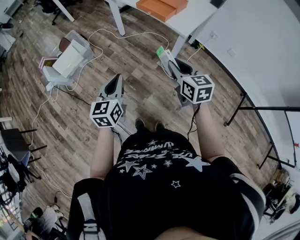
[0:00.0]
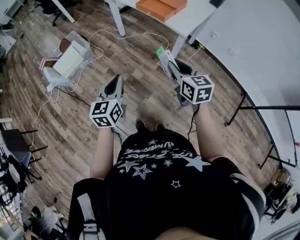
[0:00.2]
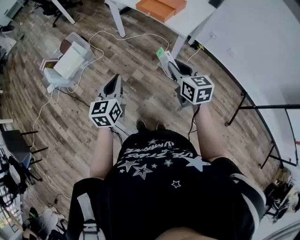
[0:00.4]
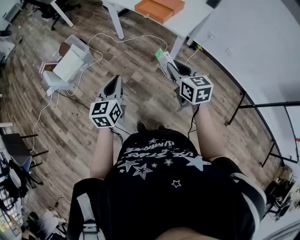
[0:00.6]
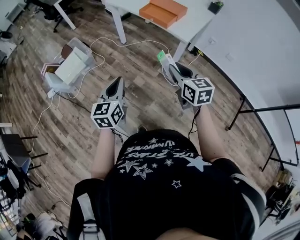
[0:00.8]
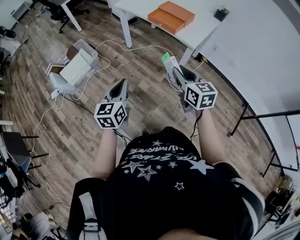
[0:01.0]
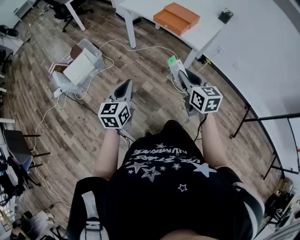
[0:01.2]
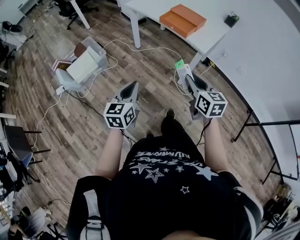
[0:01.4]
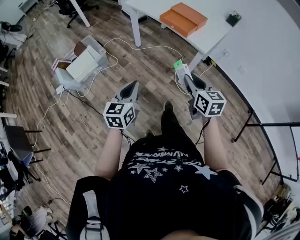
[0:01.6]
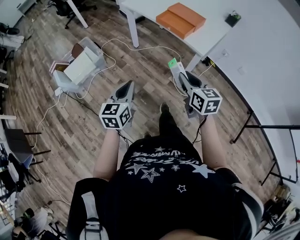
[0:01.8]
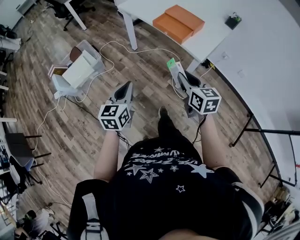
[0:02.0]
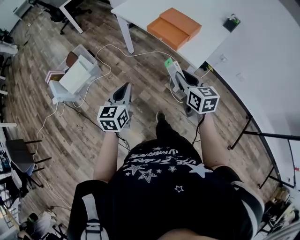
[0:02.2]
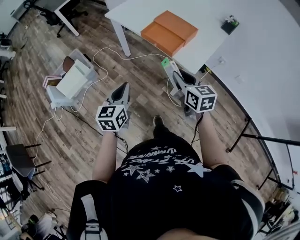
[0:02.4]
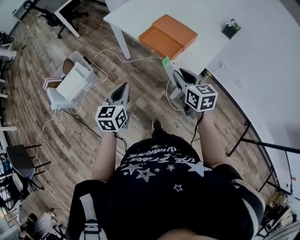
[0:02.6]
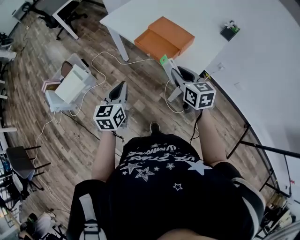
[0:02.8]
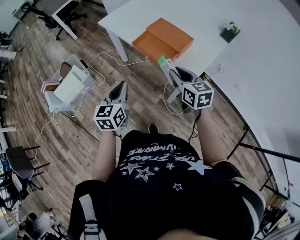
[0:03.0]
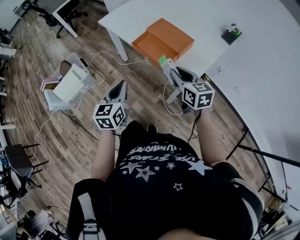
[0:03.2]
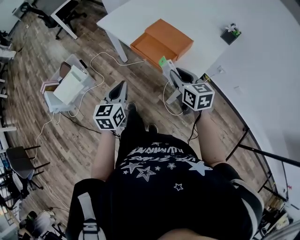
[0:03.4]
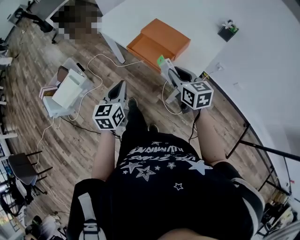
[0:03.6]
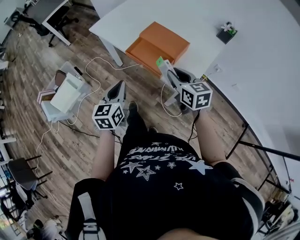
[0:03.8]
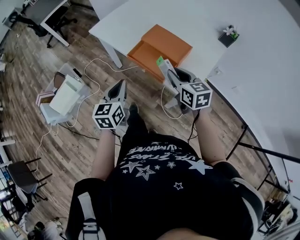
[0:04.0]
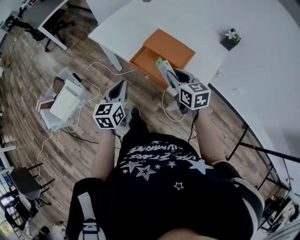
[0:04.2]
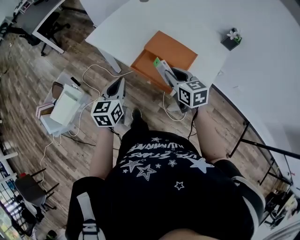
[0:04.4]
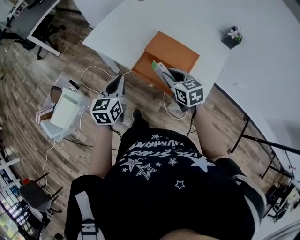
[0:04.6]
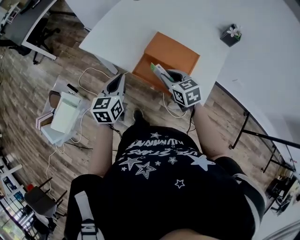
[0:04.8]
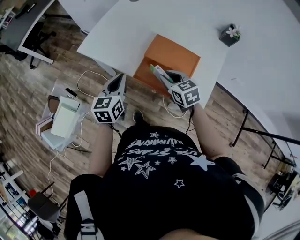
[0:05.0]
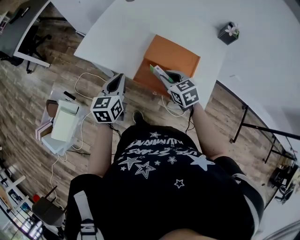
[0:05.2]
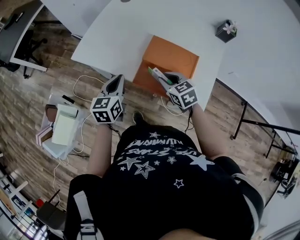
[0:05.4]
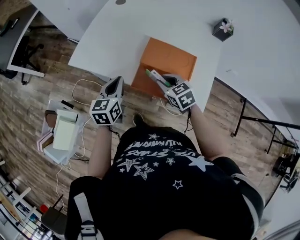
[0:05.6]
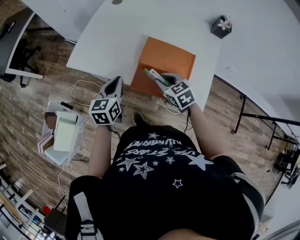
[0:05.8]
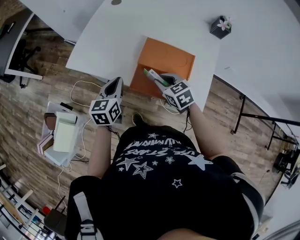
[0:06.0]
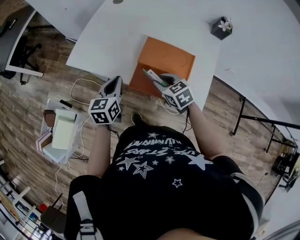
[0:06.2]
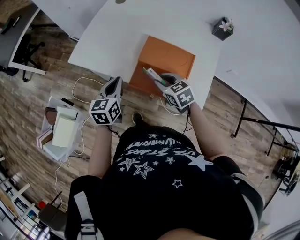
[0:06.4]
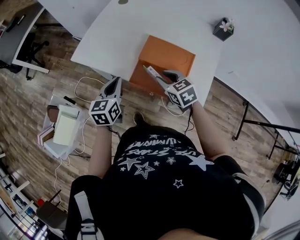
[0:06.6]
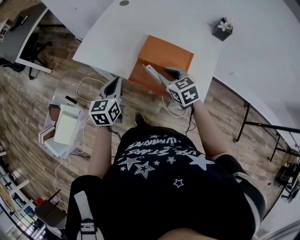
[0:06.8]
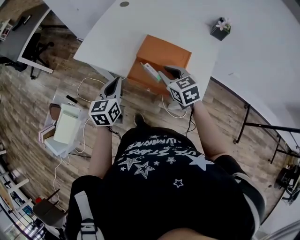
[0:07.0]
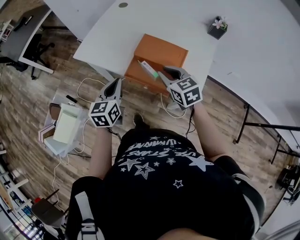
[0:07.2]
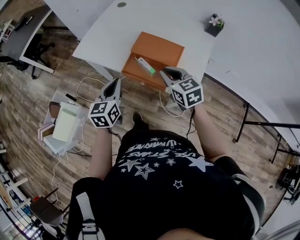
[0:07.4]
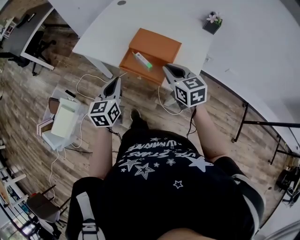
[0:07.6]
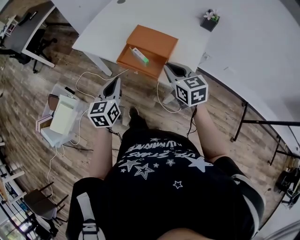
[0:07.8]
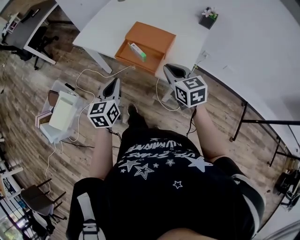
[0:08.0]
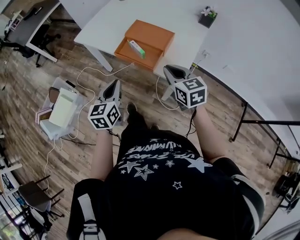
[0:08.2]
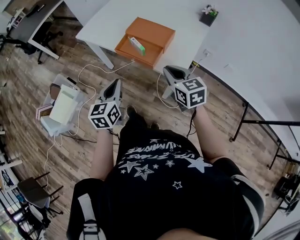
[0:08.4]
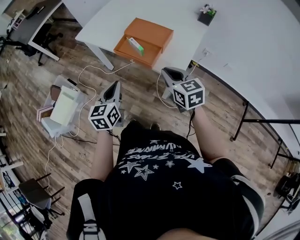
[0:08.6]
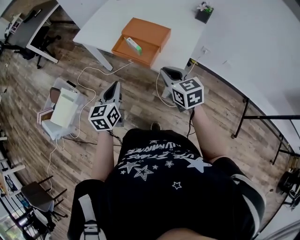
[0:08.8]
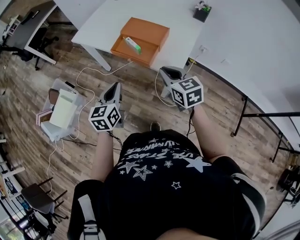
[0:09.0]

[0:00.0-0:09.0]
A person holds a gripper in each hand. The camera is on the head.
0.0 to 1.6 s: The grippers make only small movements.
1.6 to 3.0 s: The grippers both shift forward and to the right by about 15 cm.
3.0 to 4.4 s: The grippers both shift forward by some 10 cm.
4.4 to 6.0 s: The left gripper travels forward by about 10 cm; the right gripper heads downward, covering roughly 5 cm.
6.0 to 7.6 s: The right gripper moves upward and to the right, about 10 cm, while the left gripper goes about 10 cm backward.
7.6 to 9.0 s: The grippers both shift backward by approximately 10 cm.

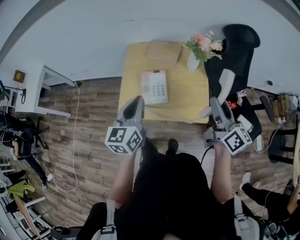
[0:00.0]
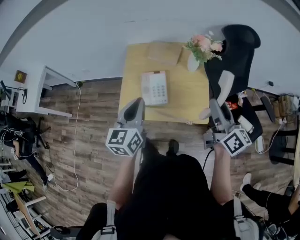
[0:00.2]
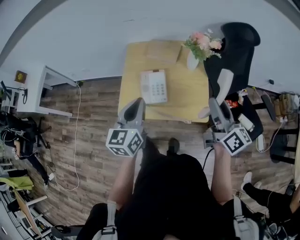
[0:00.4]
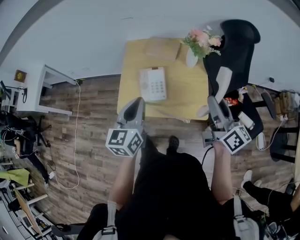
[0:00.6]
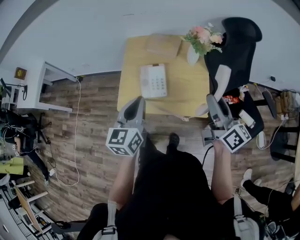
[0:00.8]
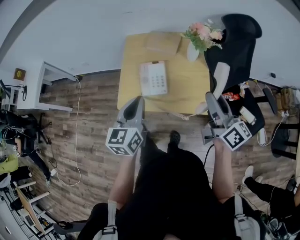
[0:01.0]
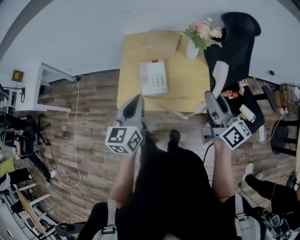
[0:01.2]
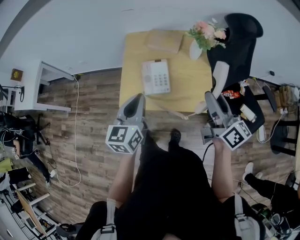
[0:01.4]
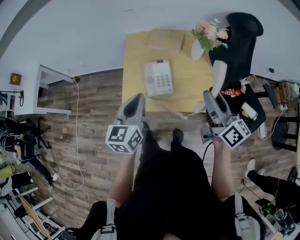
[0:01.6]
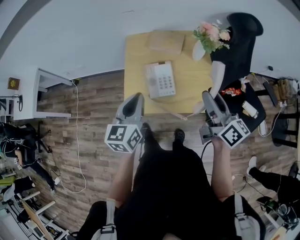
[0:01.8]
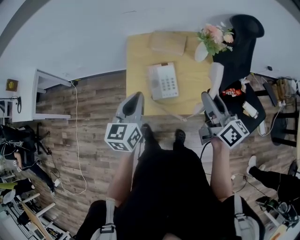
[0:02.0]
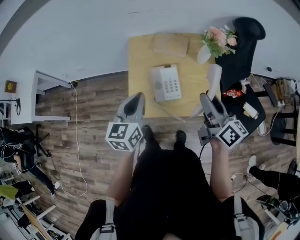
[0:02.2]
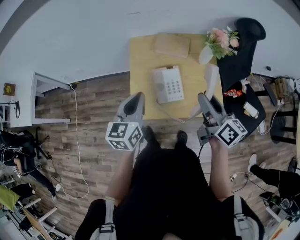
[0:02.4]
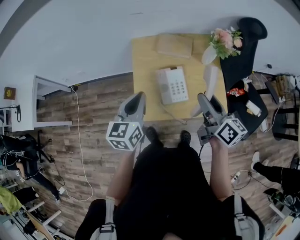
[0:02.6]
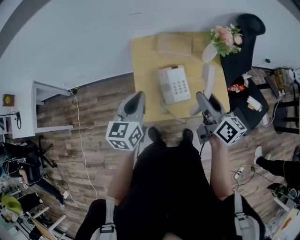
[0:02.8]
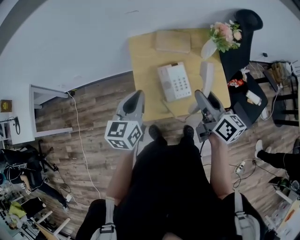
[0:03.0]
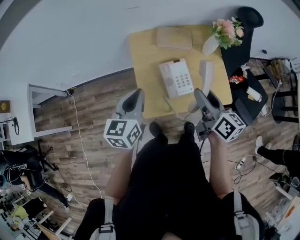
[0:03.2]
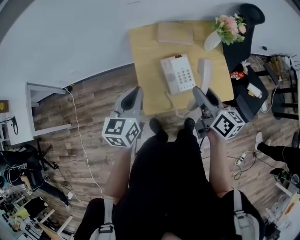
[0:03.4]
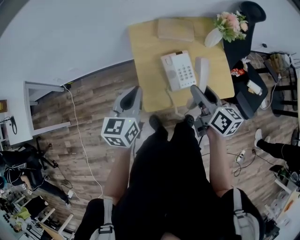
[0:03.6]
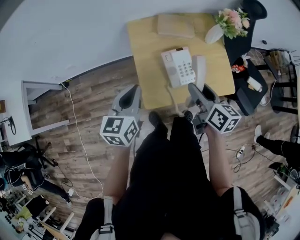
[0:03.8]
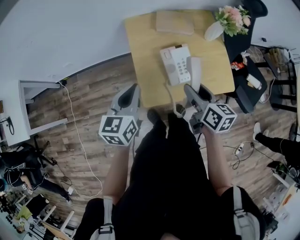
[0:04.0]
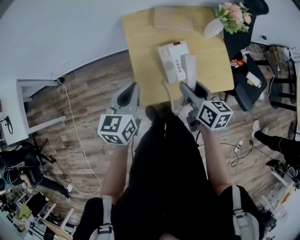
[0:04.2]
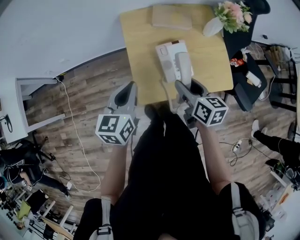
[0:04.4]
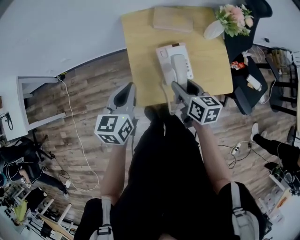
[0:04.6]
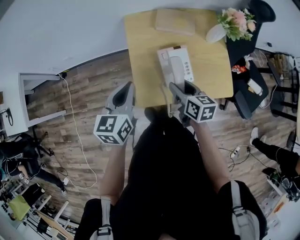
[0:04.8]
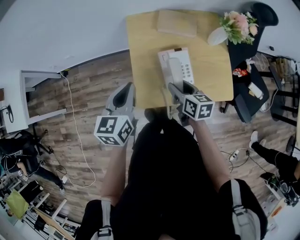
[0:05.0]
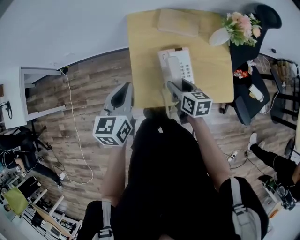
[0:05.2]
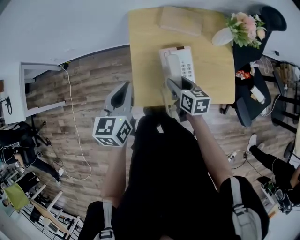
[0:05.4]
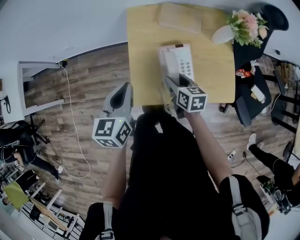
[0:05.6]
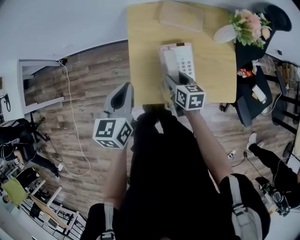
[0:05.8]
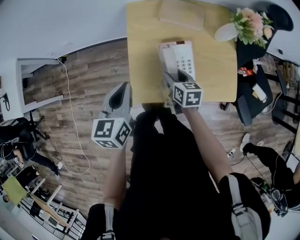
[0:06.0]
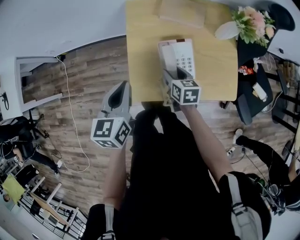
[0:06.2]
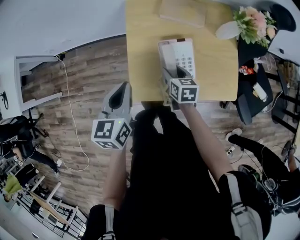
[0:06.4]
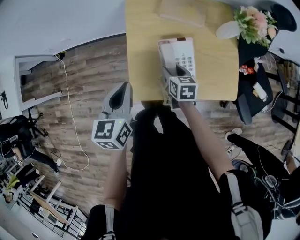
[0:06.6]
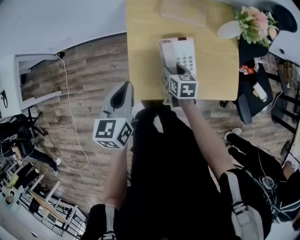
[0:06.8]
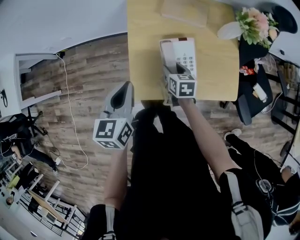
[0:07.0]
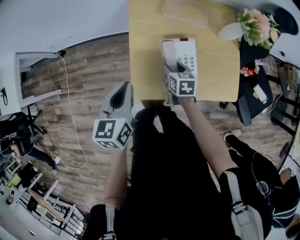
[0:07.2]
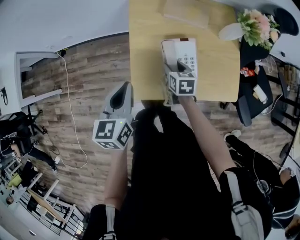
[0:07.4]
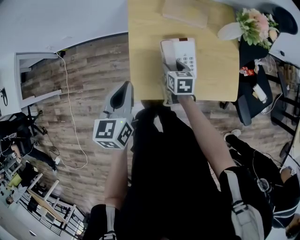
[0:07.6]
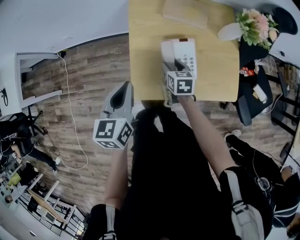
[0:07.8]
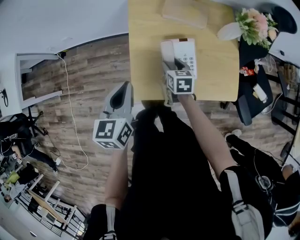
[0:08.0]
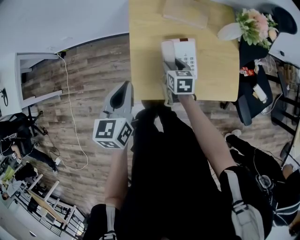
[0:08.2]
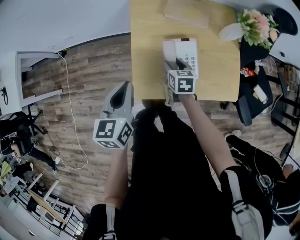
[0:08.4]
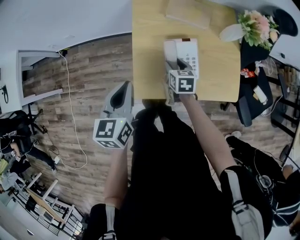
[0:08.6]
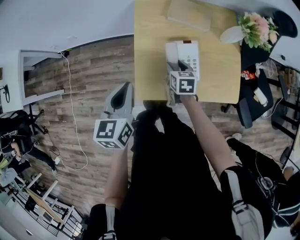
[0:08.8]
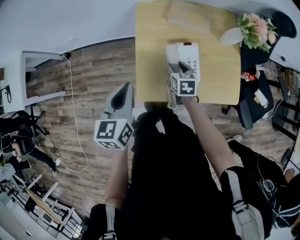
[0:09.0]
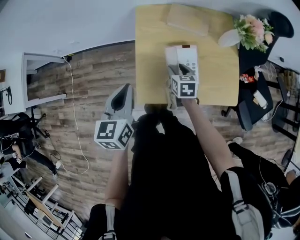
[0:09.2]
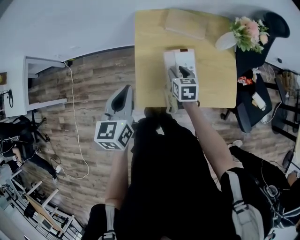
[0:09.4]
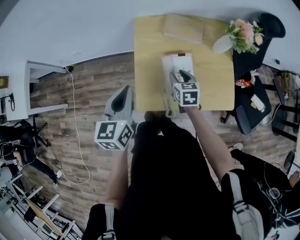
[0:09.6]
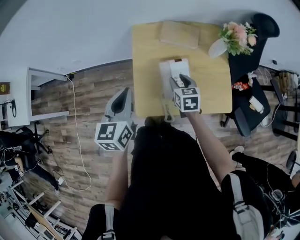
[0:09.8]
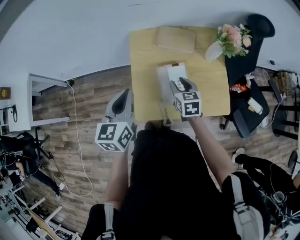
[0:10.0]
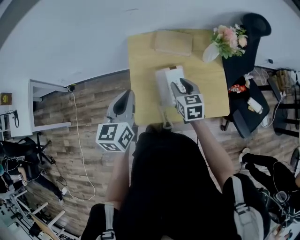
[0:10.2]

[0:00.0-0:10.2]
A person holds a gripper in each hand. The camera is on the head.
0.0 to 1.4 s: The grippers move only a little.
1.4 to 3.0 s: The right gripper travels to the left by approximately 20 cm. The left gripper heads to the left and forward, covering roughly 20 cm.
3.0 to 4.4 s: The right gripper is displaced downward and to the left by about 15 cm, and turns by about 20 degrees; the left gripper moves downward, approximately 5 cm.
4.4 to 5.8 s: The right gripper goes about 15 cm downward and forward.
5.8 to 7.2 s: The right gripper travels downward by about 5 cm.
7.2 to 8.8 s: The grippers make only small movements.
8.8 to 10.2 s: The right gripper goes roughly 15 cm upward and to the right; the left gripper shifts roughly 10 cm upward.

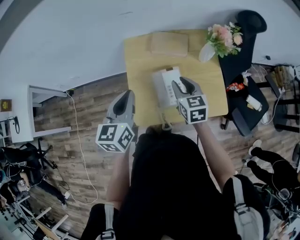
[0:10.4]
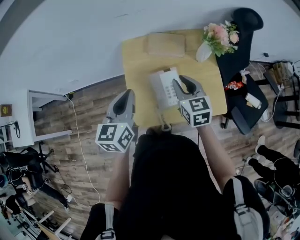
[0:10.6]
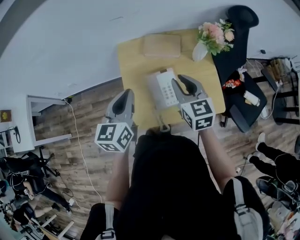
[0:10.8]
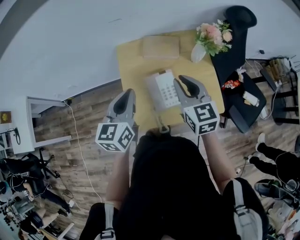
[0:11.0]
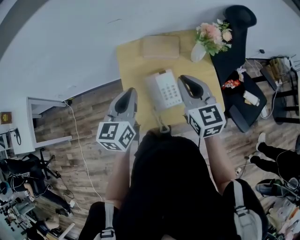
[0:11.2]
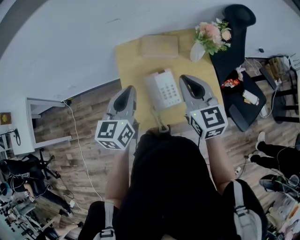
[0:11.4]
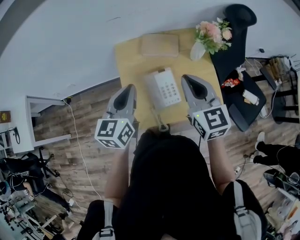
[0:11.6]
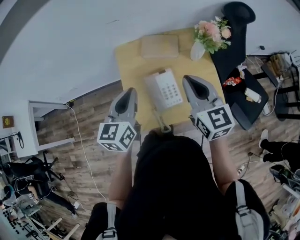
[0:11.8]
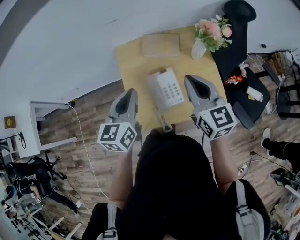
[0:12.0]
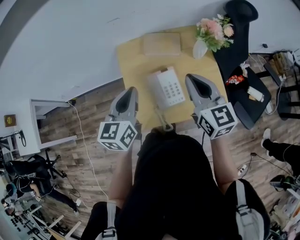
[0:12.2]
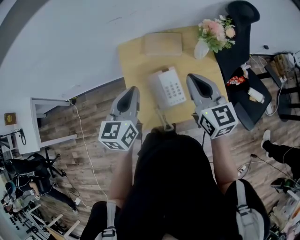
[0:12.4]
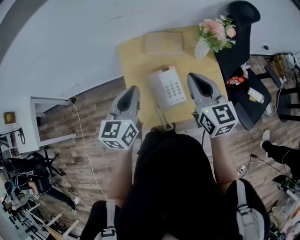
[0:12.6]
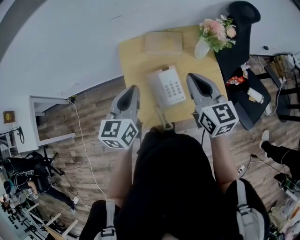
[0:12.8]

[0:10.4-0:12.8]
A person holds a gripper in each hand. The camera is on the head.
10.4 to 11.6 s: The right gripper goes some 15 cm upward, and closes its fingers. The left gripper ends up approximately 5 cm from where it was.
11.6 to 12.8 s: The grippers make only small movements.

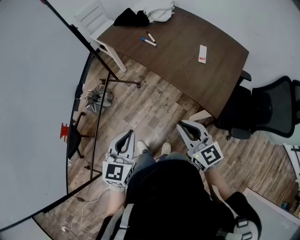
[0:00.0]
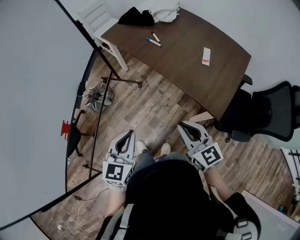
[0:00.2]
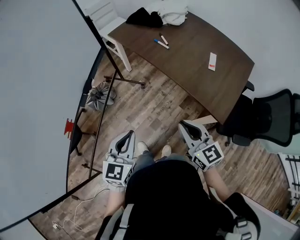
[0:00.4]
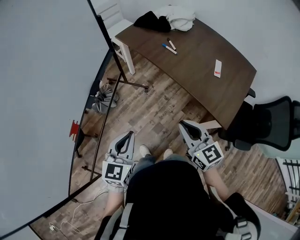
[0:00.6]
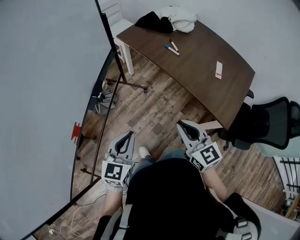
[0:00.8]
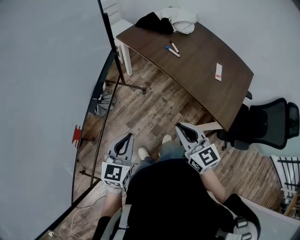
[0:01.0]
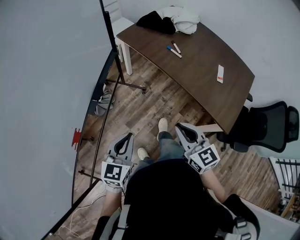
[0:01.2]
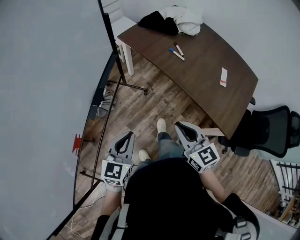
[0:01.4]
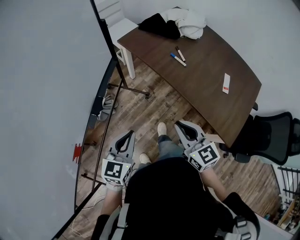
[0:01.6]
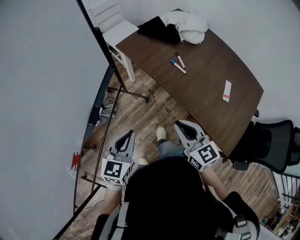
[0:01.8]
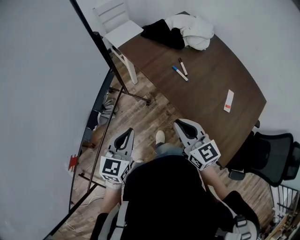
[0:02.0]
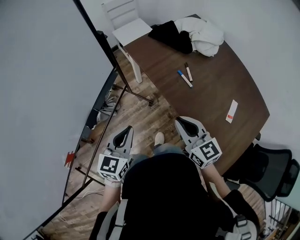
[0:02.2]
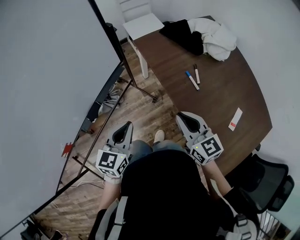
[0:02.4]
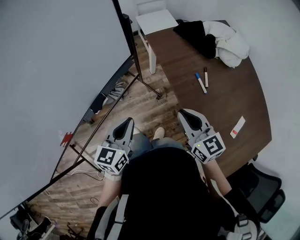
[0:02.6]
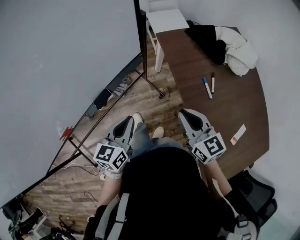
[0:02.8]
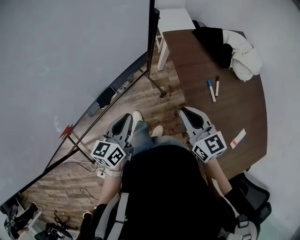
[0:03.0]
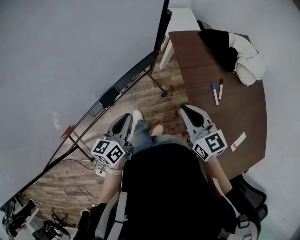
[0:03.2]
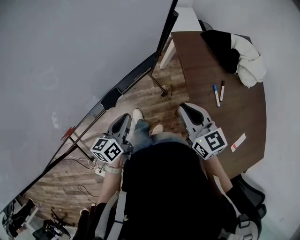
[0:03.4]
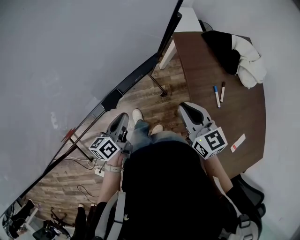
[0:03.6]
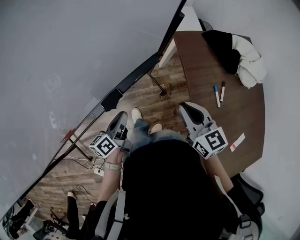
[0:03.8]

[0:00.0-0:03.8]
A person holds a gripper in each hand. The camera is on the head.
0.0 to 1.2 s: Both grippers travel together to the left and forward, roughly 25 cm.
1.2 to 2.6 s: The two grippers go approximately 30 cm forward. The right gripper swivels approximately 20 degrees. Meanwhile the left gripper changes its angle by approximately 30 degrees.
2.6 to 3.8 s: The left gripper shifts approximately 20 cm to the left, downward and forward, and rolls counterclockwise, seen from behind, by roughly 50 degrees. The right gripper goes approximately 15 cm forward and to the left.
